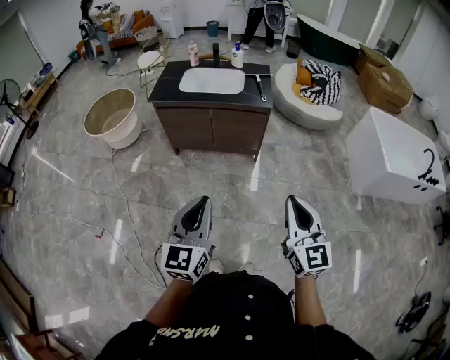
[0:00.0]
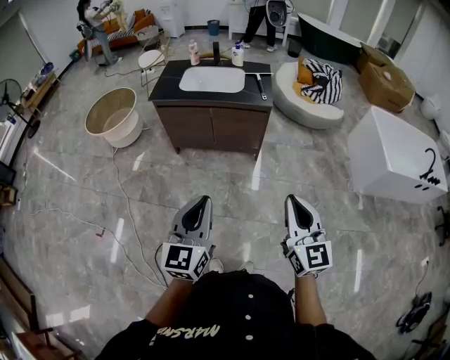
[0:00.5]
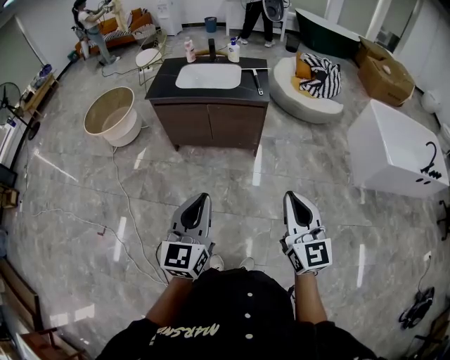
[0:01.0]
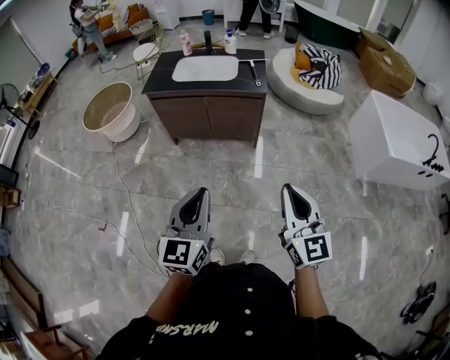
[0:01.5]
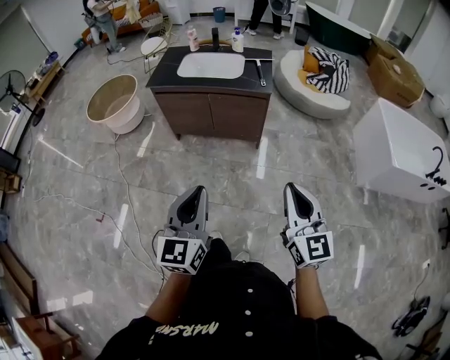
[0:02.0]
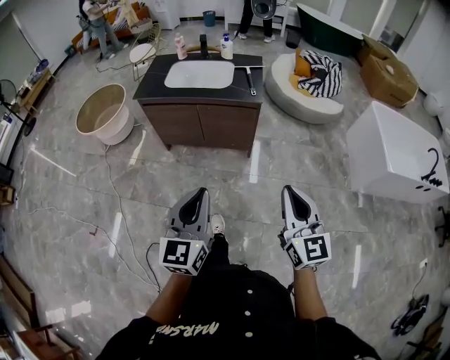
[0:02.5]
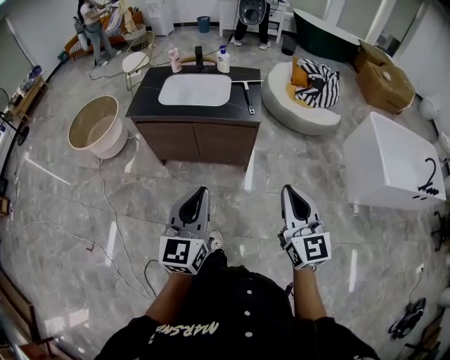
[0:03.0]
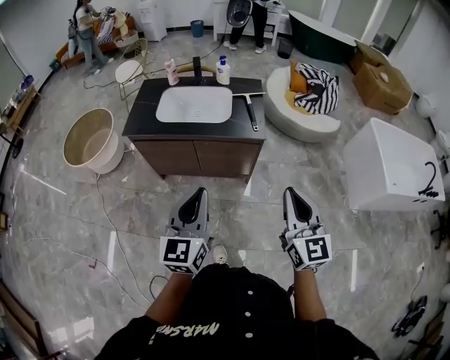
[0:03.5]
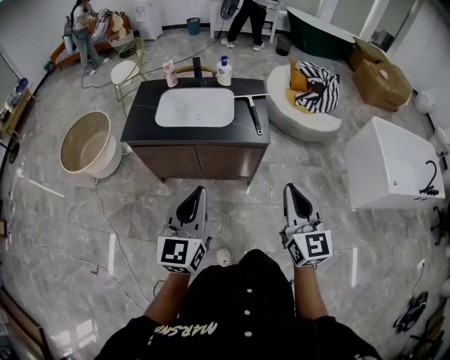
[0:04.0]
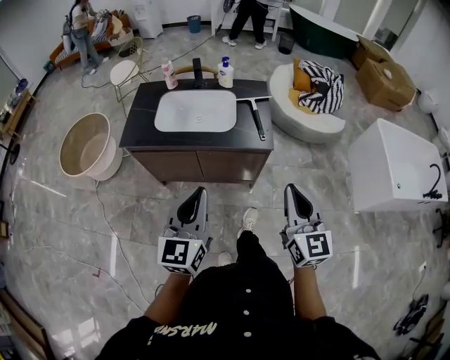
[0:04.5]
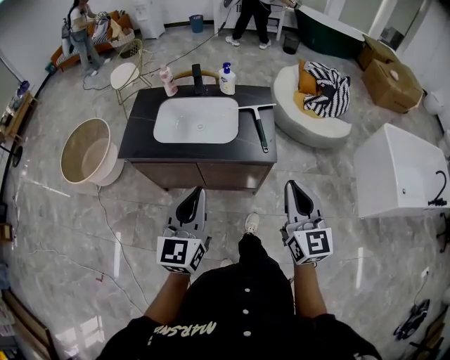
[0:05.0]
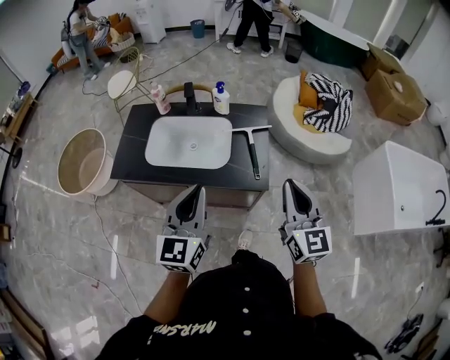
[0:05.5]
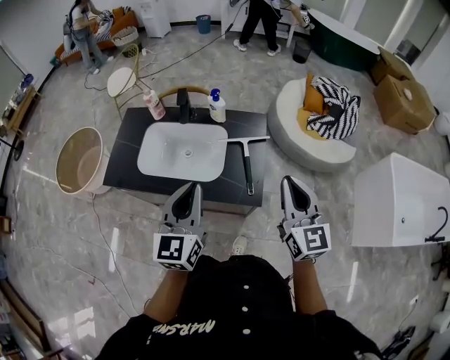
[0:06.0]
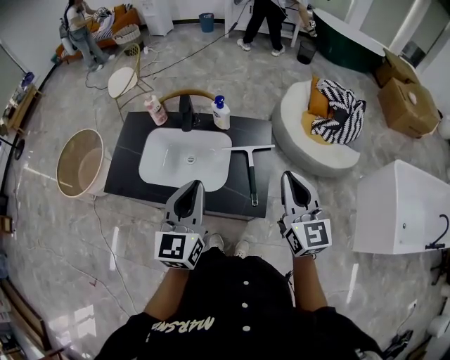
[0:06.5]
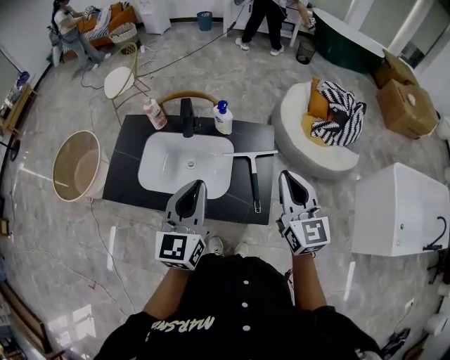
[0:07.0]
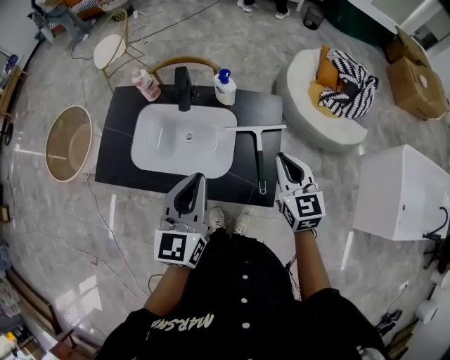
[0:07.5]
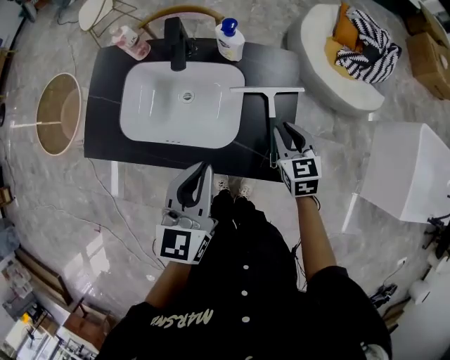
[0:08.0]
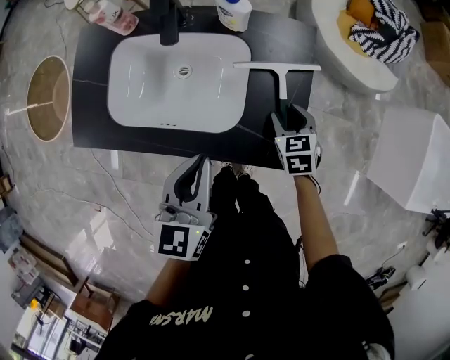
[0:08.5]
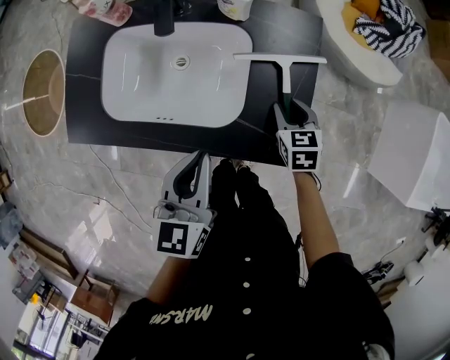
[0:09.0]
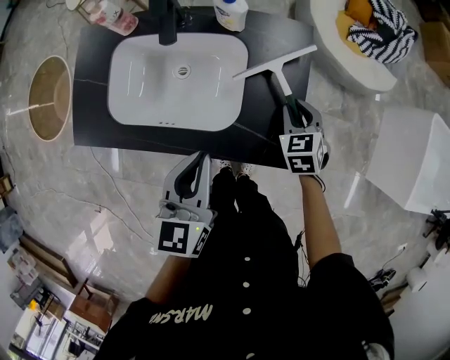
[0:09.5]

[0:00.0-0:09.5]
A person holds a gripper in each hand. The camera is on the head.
0:00.0 to 0:02.0: The two grippers go roughly 5 cm to the right.
0:02.0 to 0:04.0: Both grippers travel together forward, roughly 35 cm.
0:04.0 to 0:05.5: The two grippers go roughly 25 cm forward.
0:05.5 to 0:07.5: The right gripper goes some 30 cm forward and downward, and swivels some 20 degrees. Meanwhile the left gripper is displaced forward by some 20 cm.
0:07.5 to 0:09.5: The left gripper moves downward, approximately 15 cm. Meanwhile the right gripper is displaced downward by approximately 20 cm, angles its fingers downward, by about 30 degrees, and opens.

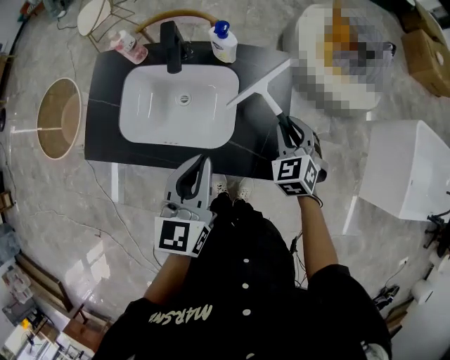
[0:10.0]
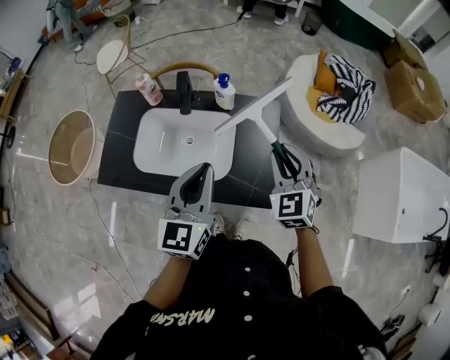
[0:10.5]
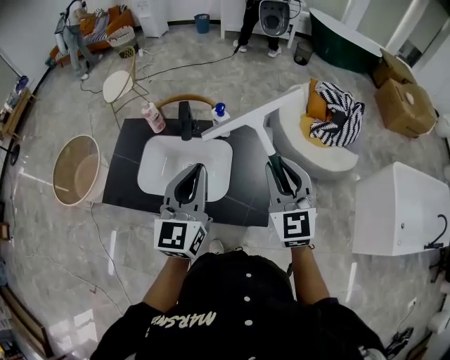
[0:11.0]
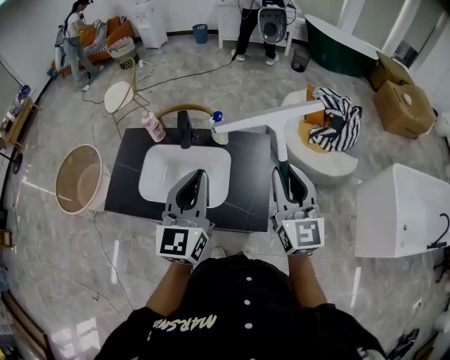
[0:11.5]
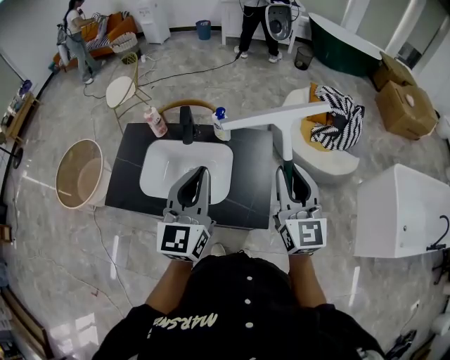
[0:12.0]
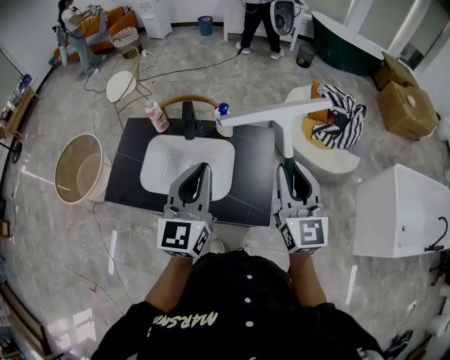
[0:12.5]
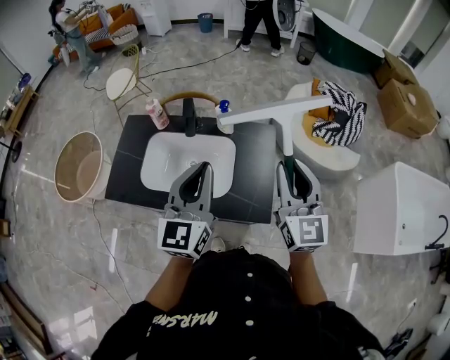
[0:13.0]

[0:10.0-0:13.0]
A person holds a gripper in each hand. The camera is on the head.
0:10.0 to 0:11.5: The right gripper goes roughly 30 cm upward, and tips its fingers upward by some 50 degrees, while the left gripper goes approximately 15 cm upward, and swivels roughly 20 degrees.
0:11.5 to 0:13.0: The grippers move only a little.

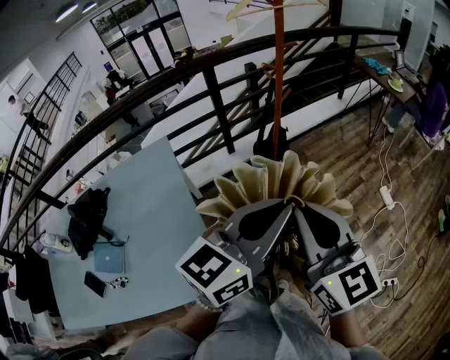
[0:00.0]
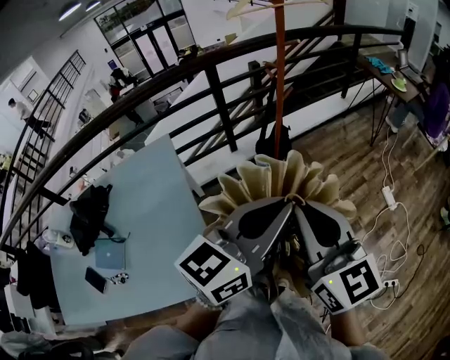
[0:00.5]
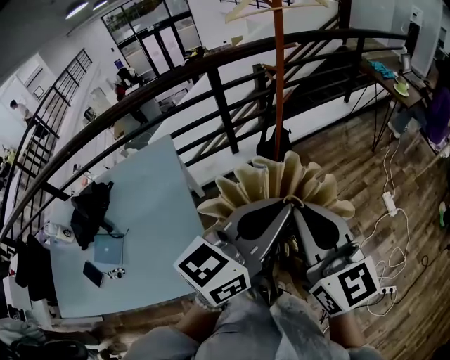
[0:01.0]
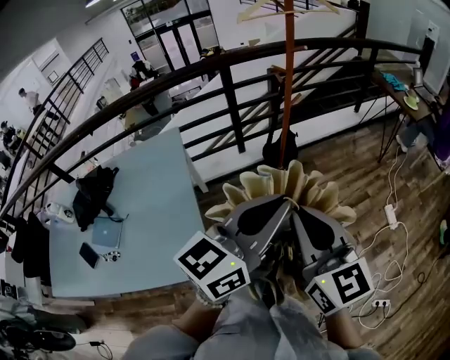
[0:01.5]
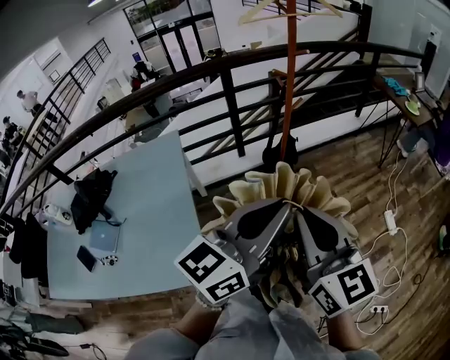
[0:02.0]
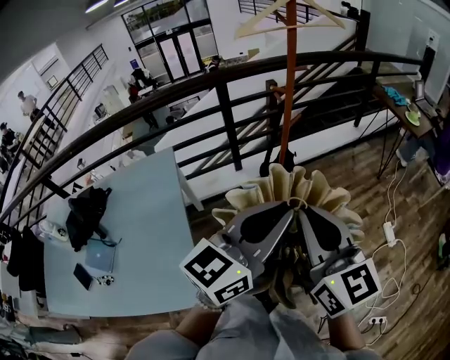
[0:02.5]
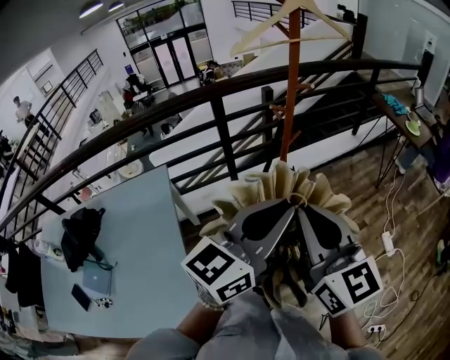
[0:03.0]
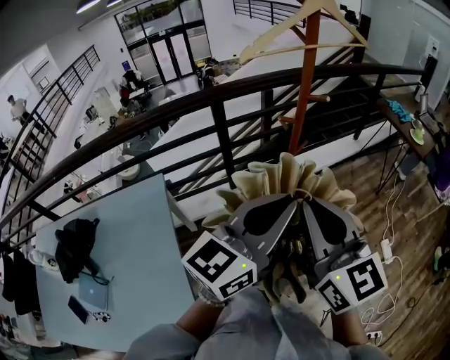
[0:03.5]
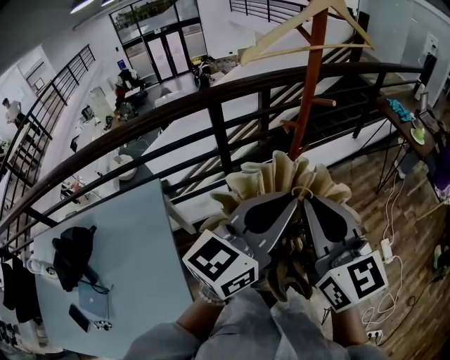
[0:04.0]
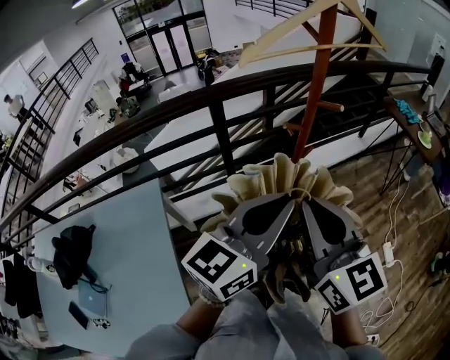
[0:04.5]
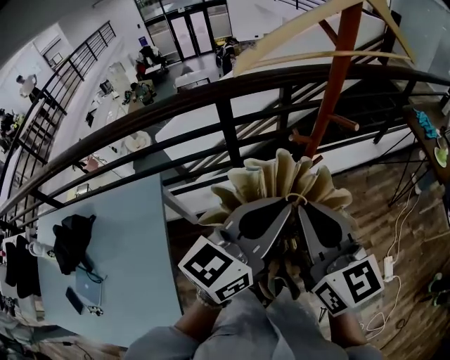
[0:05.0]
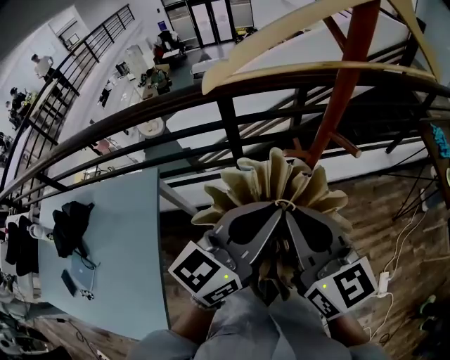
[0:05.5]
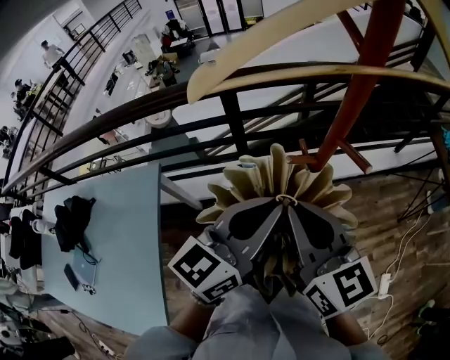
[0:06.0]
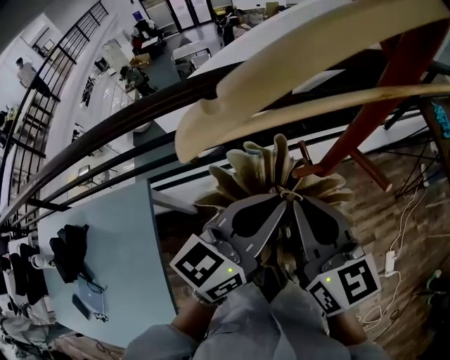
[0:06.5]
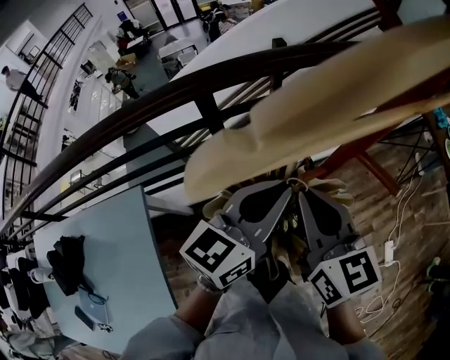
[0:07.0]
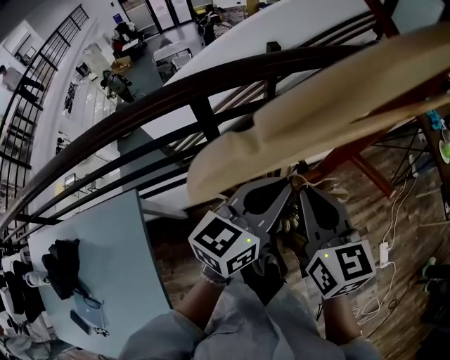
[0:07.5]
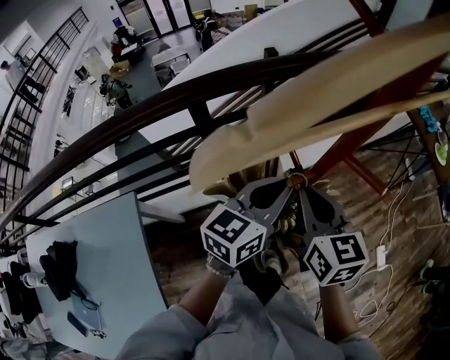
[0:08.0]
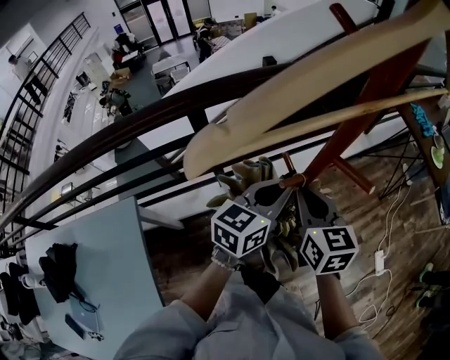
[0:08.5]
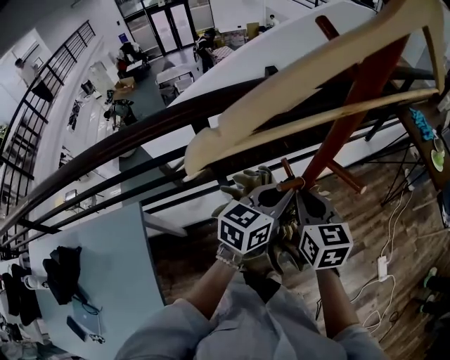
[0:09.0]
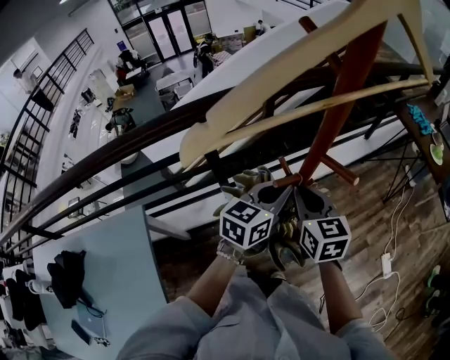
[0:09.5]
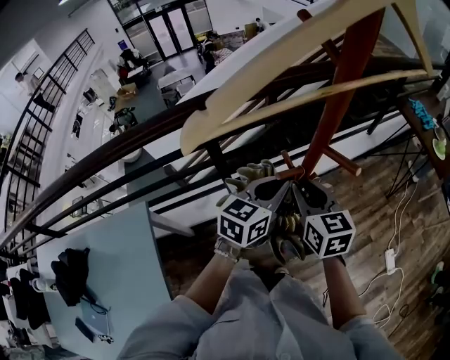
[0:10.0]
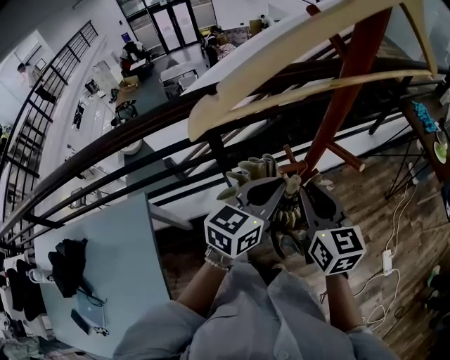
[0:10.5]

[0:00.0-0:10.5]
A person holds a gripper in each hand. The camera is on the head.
0:00.0 to 0:02.0: The right gripper shifts approximately 5 cm to the right.
0:02.0 to 0:04.0: Both grippers travel together forward, roughly 30 cm.
0:04.0 to 0:06.5: Both grippers move forward, approximately 20 cm.
0:06.5 to 0:08.5: Both grippers move downward and forward, approximately 10 cm.
0:08.5 to 0:10.5: There are only small adjustments of the grippers.

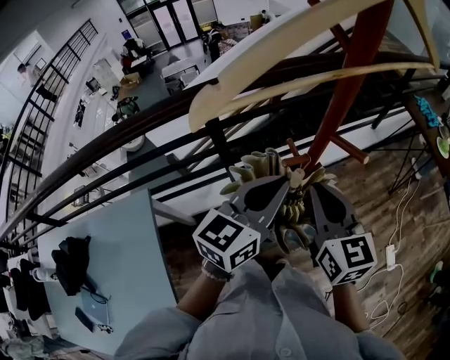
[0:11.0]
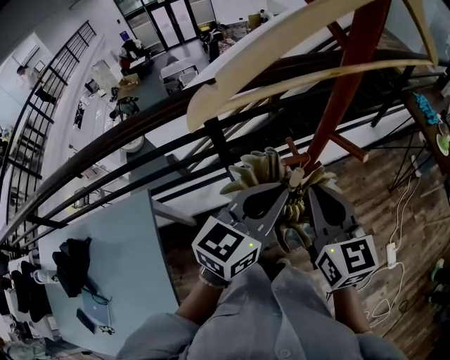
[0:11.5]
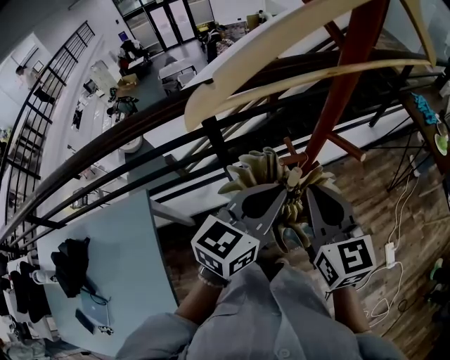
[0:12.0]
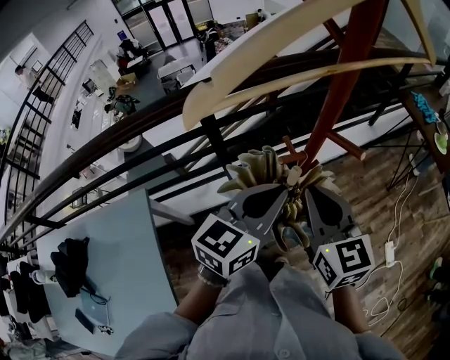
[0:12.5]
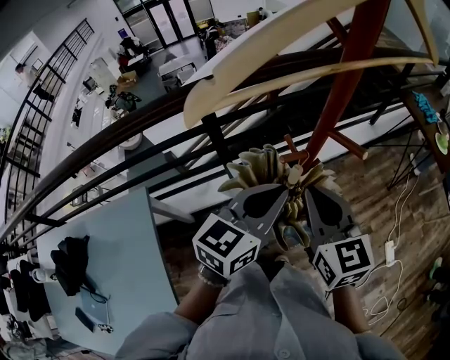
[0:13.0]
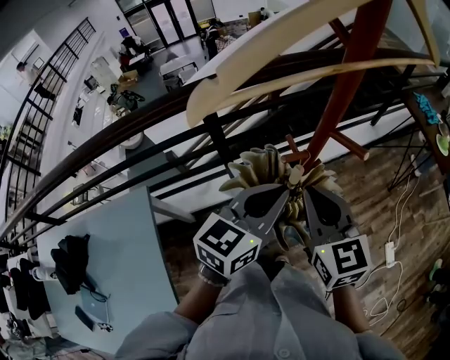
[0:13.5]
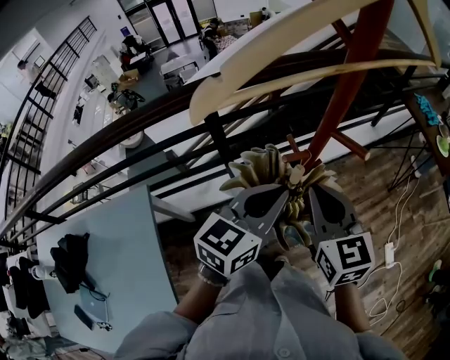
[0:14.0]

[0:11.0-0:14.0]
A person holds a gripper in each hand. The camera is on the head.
0:11.0 to 0:12.5: The grippers make only small movements.
0:12.5 to 0:14.0: Neither gripper changes place.
